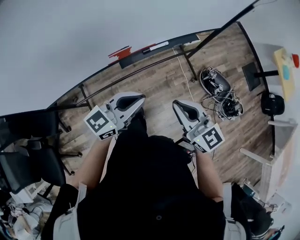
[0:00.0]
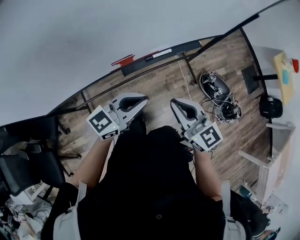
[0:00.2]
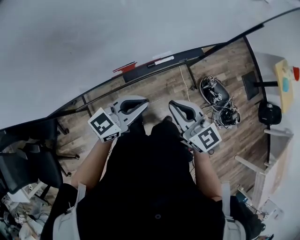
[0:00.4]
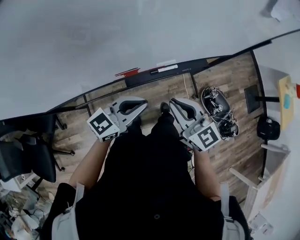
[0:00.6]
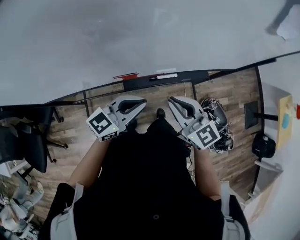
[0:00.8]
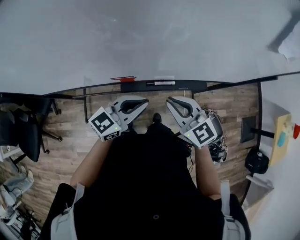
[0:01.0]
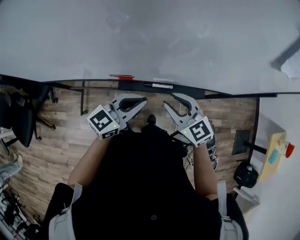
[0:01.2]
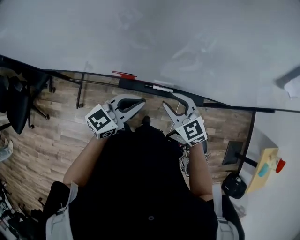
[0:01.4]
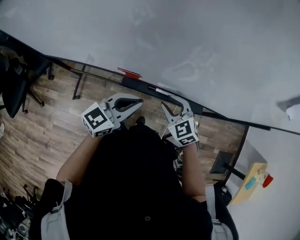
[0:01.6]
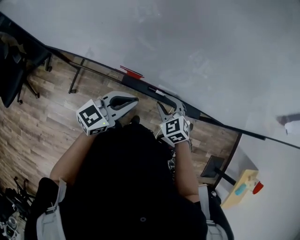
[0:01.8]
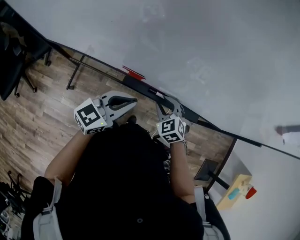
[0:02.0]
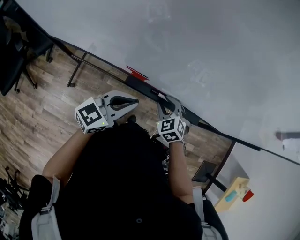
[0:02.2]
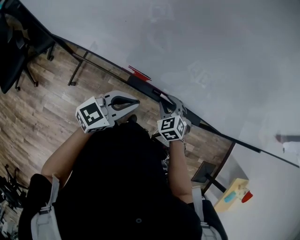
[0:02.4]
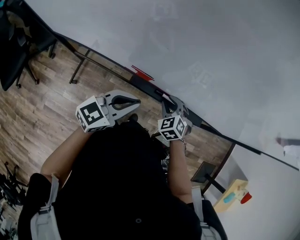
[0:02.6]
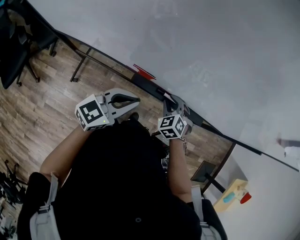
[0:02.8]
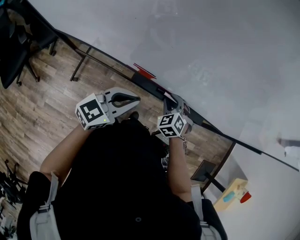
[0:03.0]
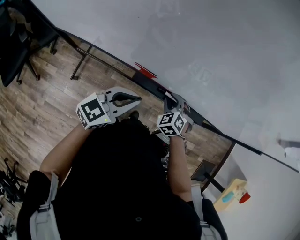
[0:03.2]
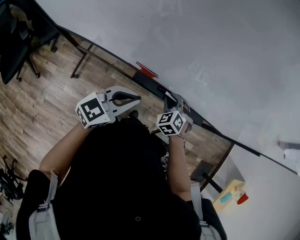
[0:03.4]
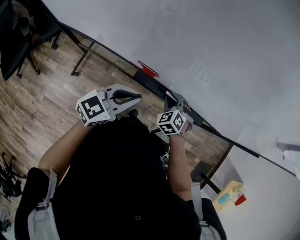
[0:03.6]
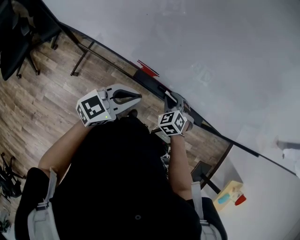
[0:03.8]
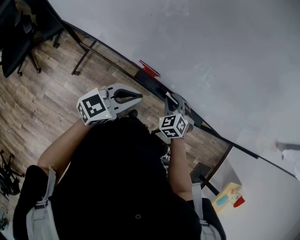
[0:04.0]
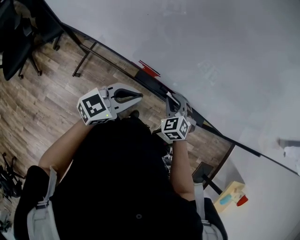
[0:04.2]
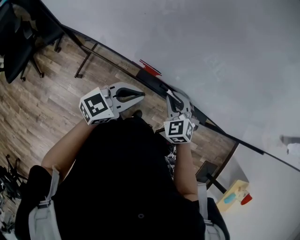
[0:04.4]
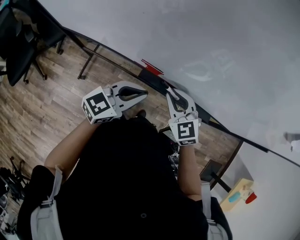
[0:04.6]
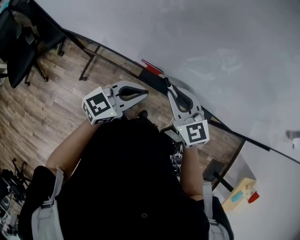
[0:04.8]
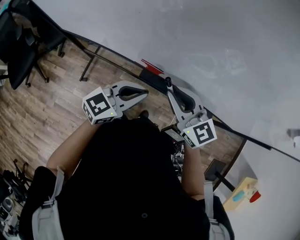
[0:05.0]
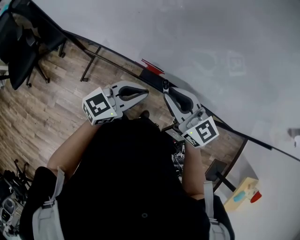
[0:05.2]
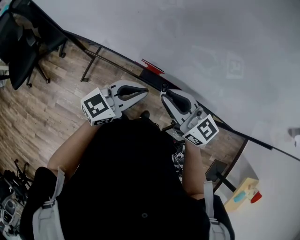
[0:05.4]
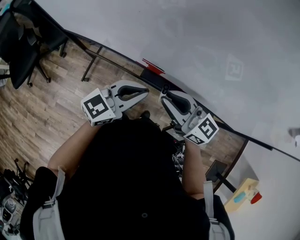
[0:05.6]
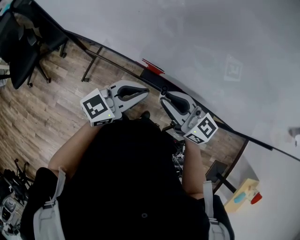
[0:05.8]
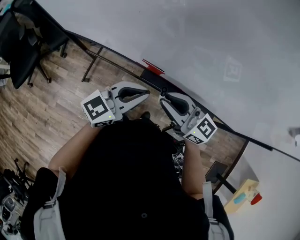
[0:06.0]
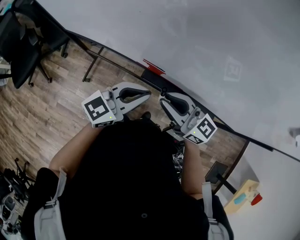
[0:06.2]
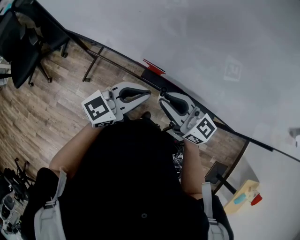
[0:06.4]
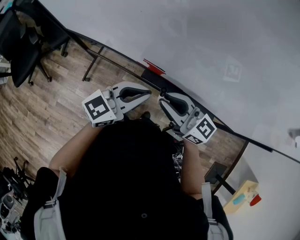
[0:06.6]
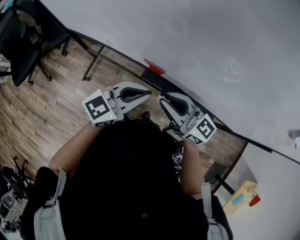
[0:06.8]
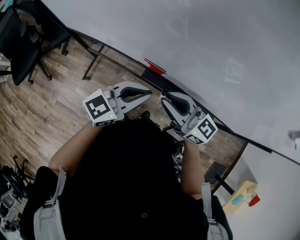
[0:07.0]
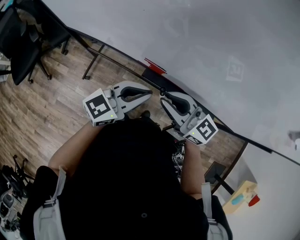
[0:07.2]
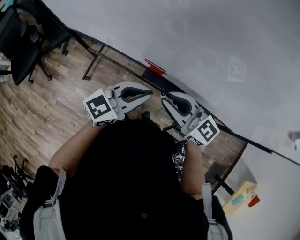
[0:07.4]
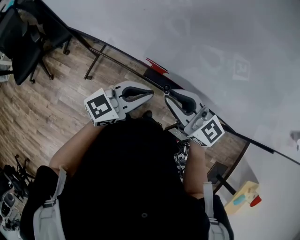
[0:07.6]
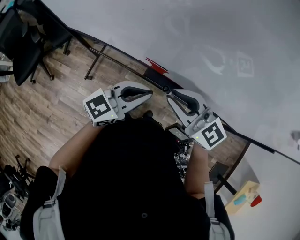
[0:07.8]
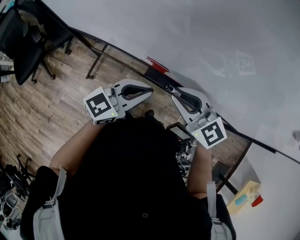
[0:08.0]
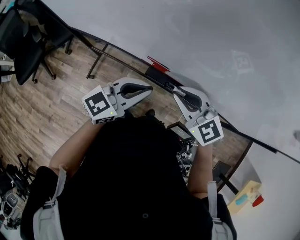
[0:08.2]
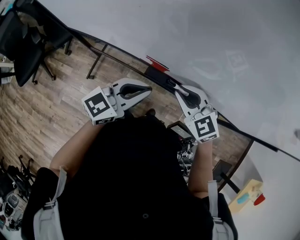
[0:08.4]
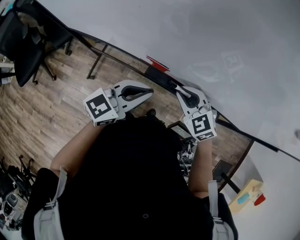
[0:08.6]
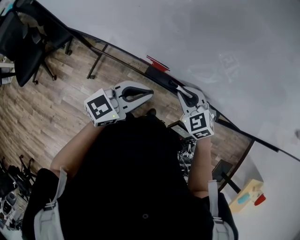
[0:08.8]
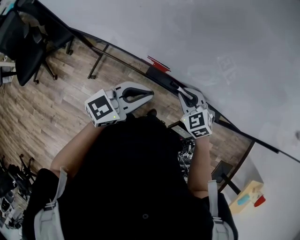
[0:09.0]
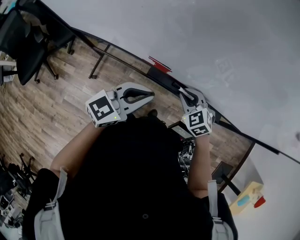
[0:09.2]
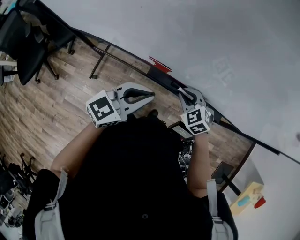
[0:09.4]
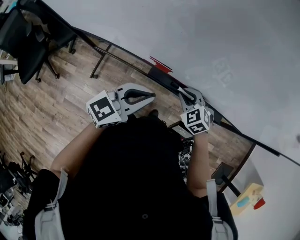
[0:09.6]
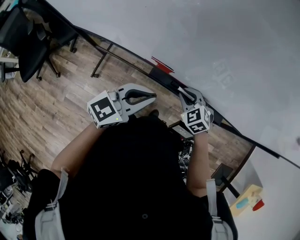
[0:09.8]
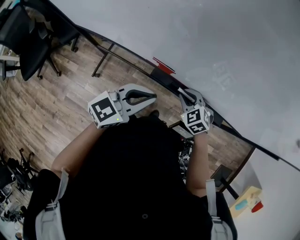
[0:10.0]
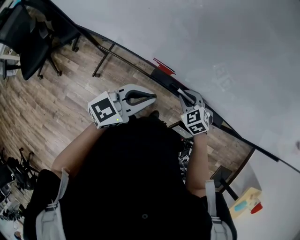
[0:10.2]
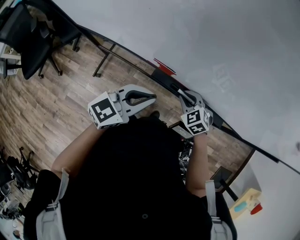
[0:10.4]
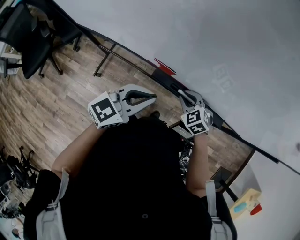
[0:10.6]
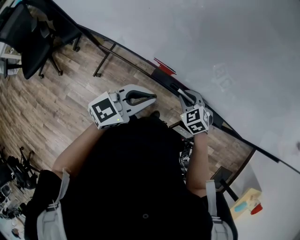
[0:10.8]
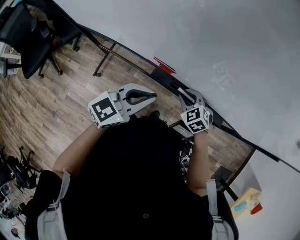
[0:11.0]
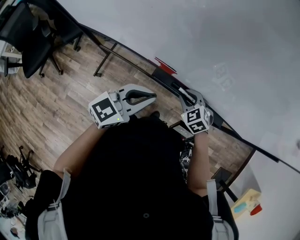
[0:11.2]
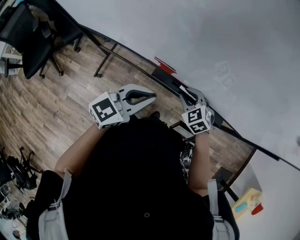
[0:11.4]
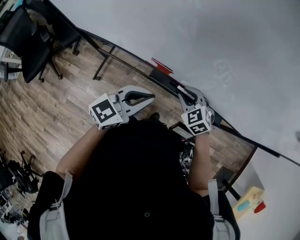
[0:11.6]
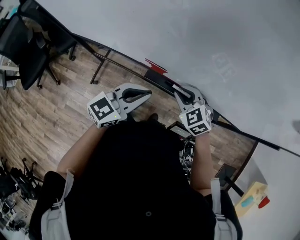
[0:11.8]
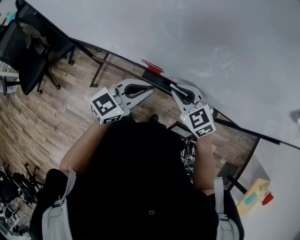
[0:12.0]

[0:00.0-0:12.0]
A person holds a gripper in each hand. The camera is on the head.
0:00.0 to 0:01.6: The left gripper moves about 15 cm, and swivels some 40 degrees. The right gripper ends up roughly 25 cm from where it was, points its fingers about 30 degrees further downward, and opens its fingers.
0:01.6 to 0:03.0: The left gripper moves about 5 cm. Meanwhile the right gripper travels downward by roughly 10 cm, and rotates about 20 degrees.
0:03.0 to 0:04.4: The right gripper goes roughly 5 cm upward.
0:04.4 to 0:06.0: The right gripper goes about 15 cm upward and to the left, and angles its fingers upward, by roughly 40 degrees.
0:06.0 to 0:07.6: The grippers make only small movements.
0:07.6 to 0:09.0: The right gripper heads downward and to the right, covering some 15 cm, and angles its fingers downward, by roughly 40 degrees.
0:09.0 to 0:10.4: The right gripper travels downward by some 5 cm.
0:10.4 to 0:12.0: The right gripper travels upward by approximately 15 cm.

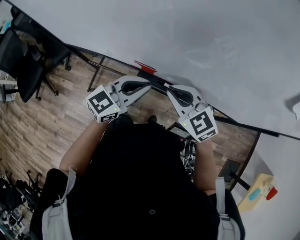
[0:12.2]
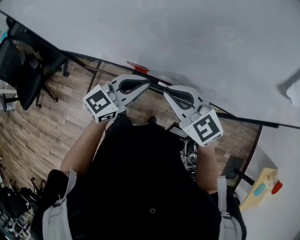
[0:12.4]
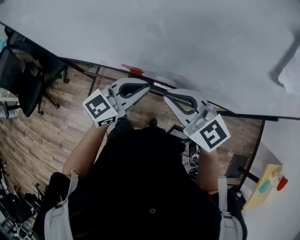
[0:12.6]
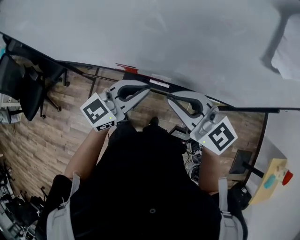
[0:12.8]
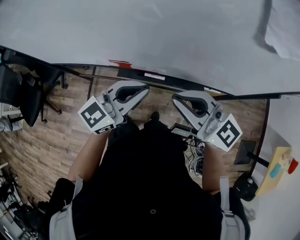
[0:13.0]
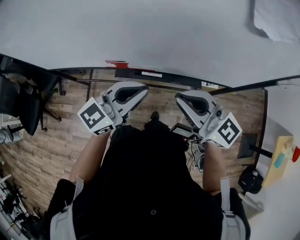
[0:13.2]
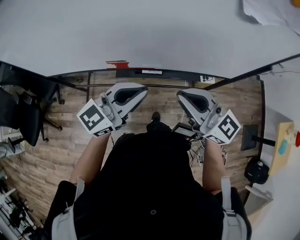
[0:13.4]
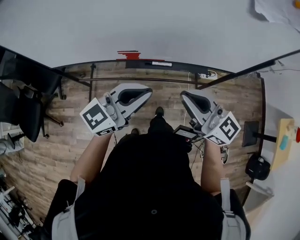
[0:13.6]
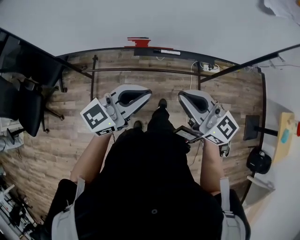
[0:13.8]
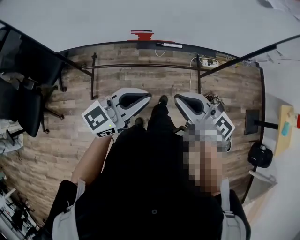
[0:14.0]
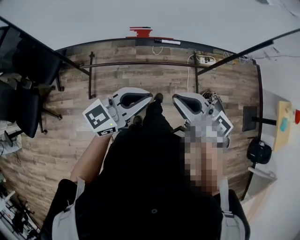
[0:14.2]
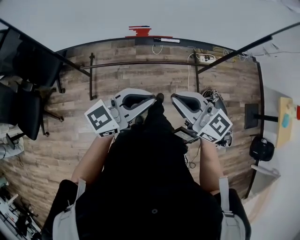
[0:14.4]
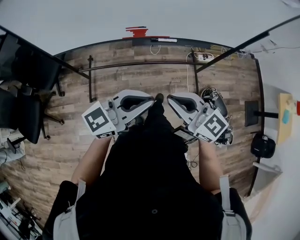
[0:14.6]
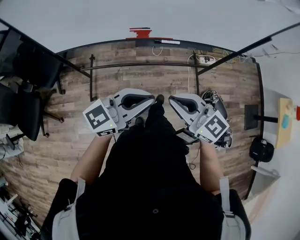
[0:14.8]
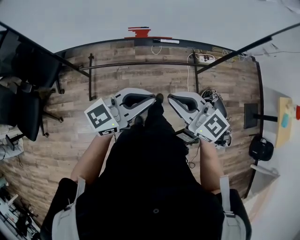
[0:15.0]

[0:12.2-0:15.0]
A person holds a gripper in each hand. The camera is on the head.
0:12.2 to 0:13.6: The right gripper goes about 20 cm backward, upward and to the right, and tilts its fingers about 30 degrees upward, while the left gripper is displaced backward and upward by about 15 cm, and rotates roughly 20 degrees.
0:13.6 to 0:15.0: The left gripper travels backward by about 15 cm. Meanwhile the right gripper goes roughly 15 cm backward, to the left and downward.

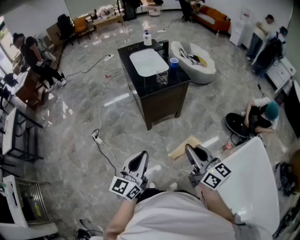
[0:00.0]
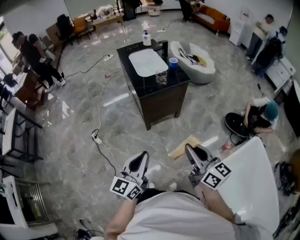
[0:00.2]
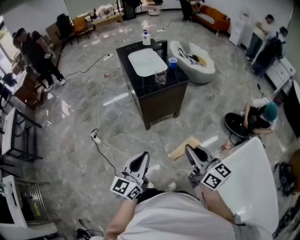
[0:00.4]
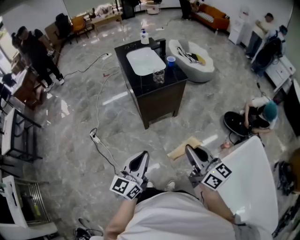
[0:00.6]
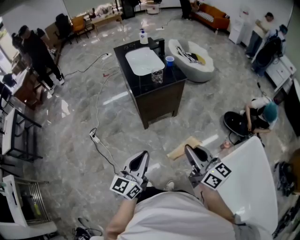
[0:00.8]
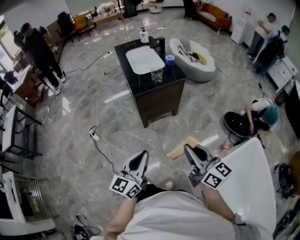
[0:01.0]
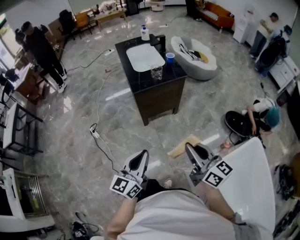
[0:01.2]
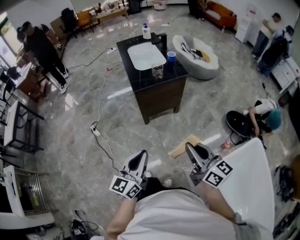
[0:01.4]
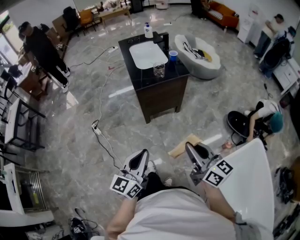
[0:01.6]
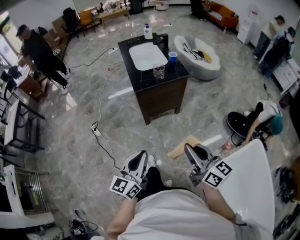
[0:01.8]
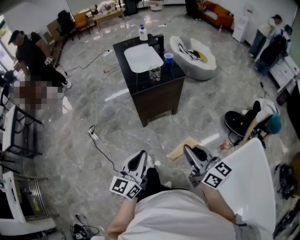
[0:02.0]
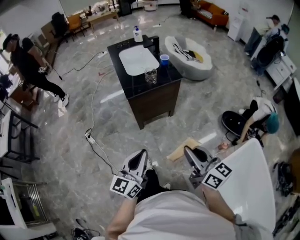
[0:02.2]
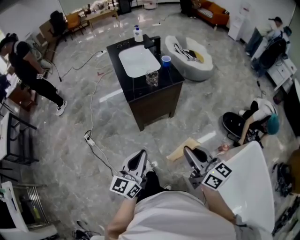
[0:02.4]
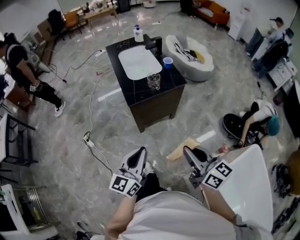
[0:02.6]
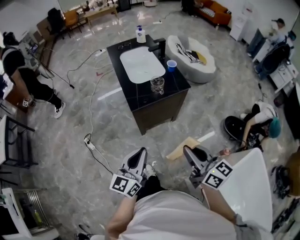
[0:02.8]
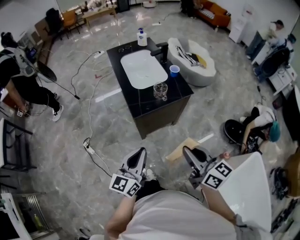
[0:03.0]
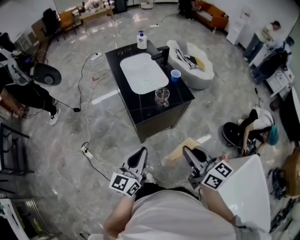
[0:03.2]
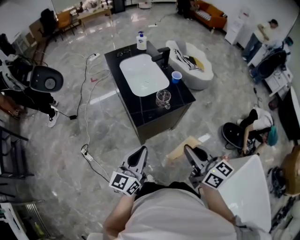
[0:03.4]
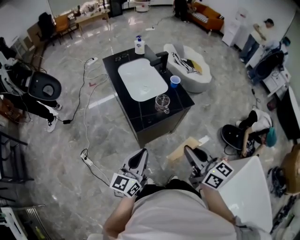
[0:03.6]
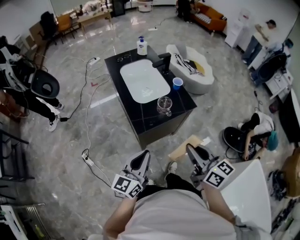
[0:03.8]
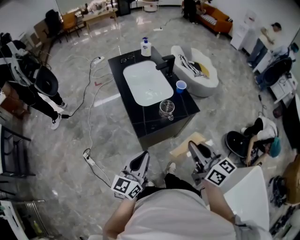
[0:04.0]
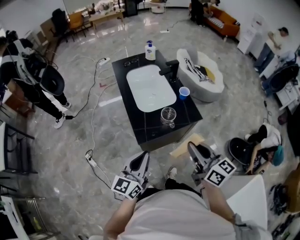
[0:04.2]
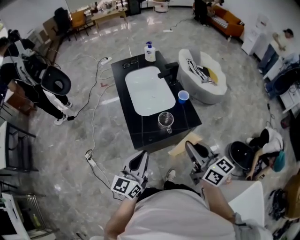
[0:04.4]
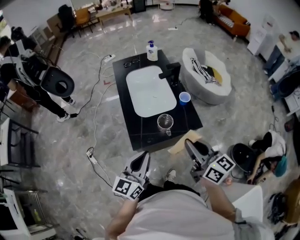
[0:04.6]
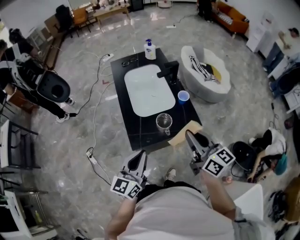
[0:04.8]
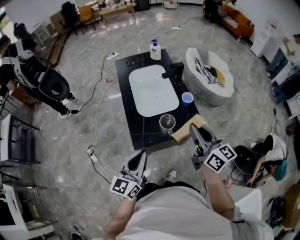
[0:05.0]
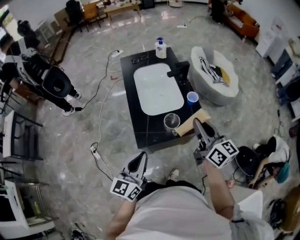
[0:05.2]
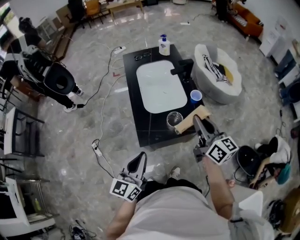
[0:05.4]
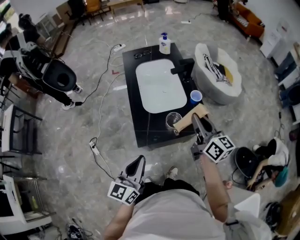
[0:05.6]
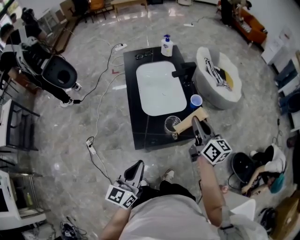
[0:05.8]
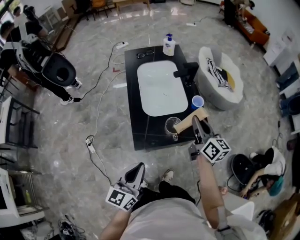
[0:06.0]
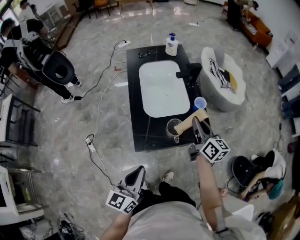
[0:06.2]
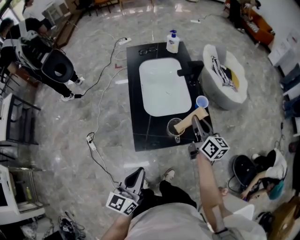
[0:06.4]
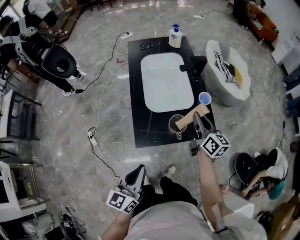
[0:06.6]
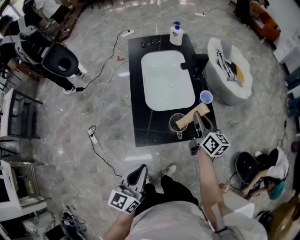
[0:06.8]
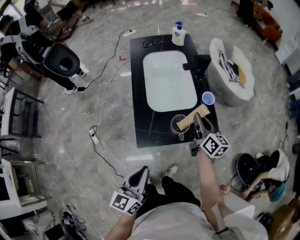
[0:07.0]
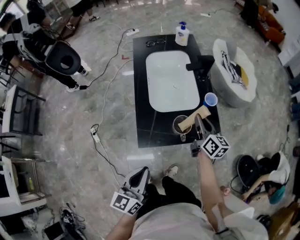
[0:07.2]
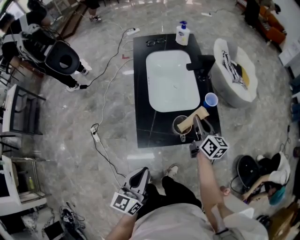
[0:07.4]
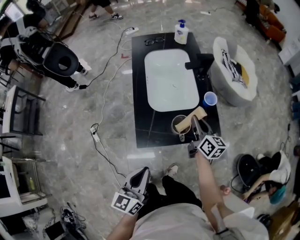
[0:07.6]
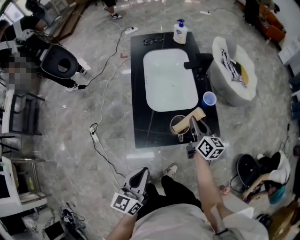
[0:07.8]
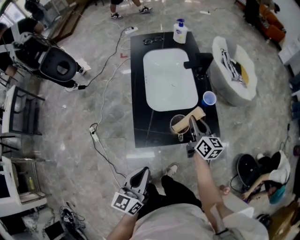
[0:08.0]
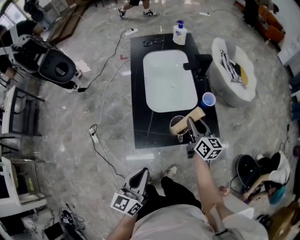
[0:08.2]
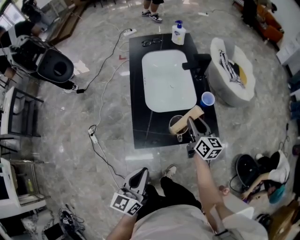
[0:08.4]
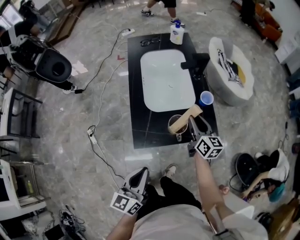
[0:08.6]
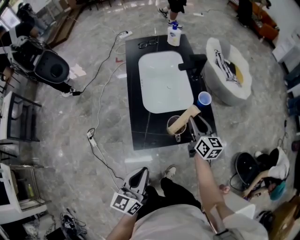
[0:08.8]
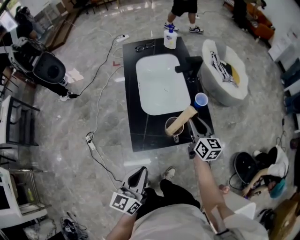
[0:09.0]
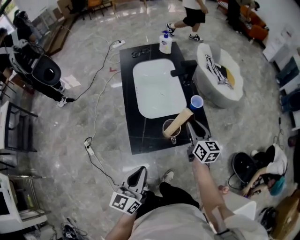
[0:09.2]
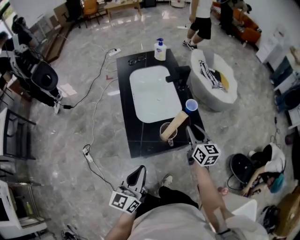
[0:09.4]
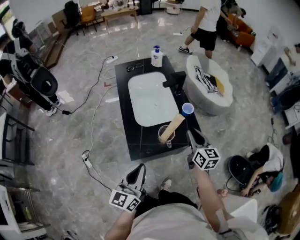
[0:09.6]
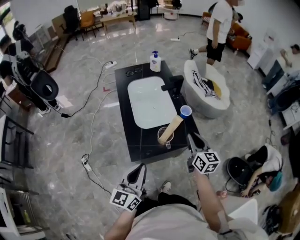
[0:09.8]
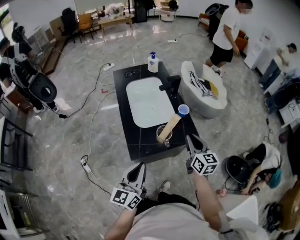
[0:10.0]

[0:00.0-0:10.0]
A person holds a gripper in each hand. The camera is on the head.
0:00.0 to 0:01.4: Both grippers travel together to the right, some 5 cm.
0:01.4 to 0:02.8: The two grippers go roughly 20 cm forward.
0:02.8 to 0:04.2: The two grippers go about 20 cm forward.
0:04.2 to 0:05.8: The right gripper is displaced forward by roughly 20 cm.
0:05.8 to 0:07.2: The right gripper travels downward and forward by approximately 15 cm.
0:07.2 to 0:08.6: The grippers make only small movements.
0:08.6 to 0:10.0: The left gripper travels upward by some 5 cm. The right gripper shifts approximately 15 cm upward and backward.
